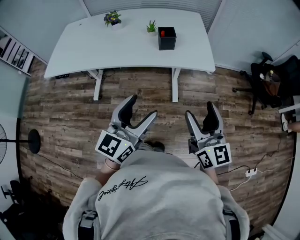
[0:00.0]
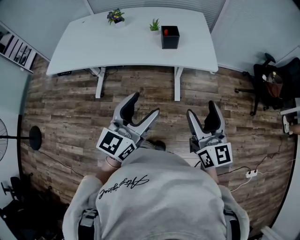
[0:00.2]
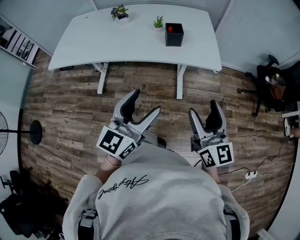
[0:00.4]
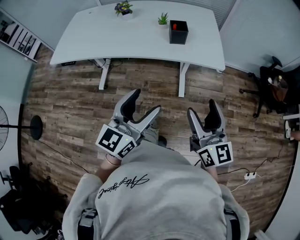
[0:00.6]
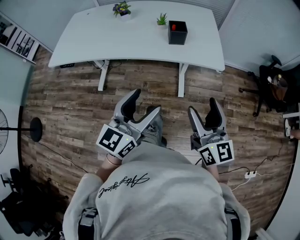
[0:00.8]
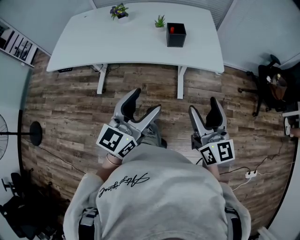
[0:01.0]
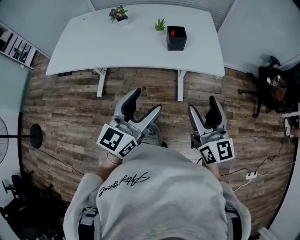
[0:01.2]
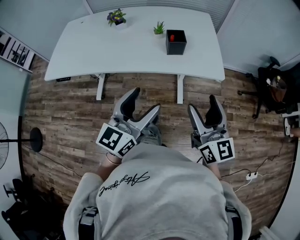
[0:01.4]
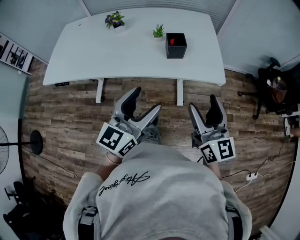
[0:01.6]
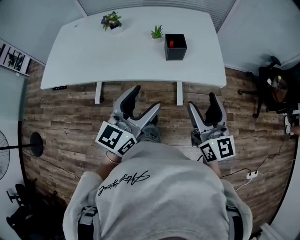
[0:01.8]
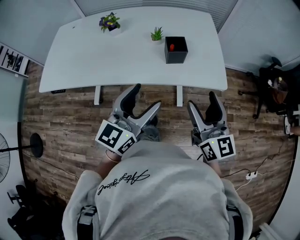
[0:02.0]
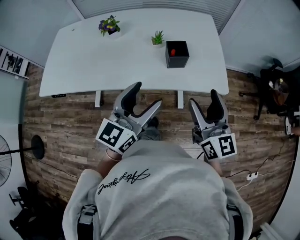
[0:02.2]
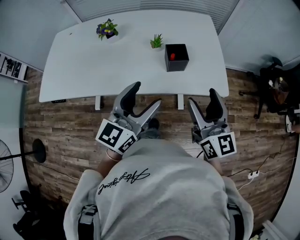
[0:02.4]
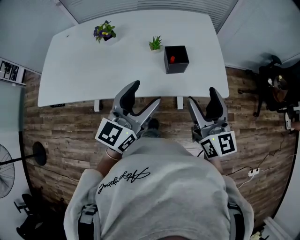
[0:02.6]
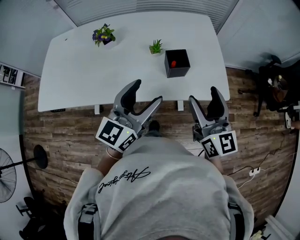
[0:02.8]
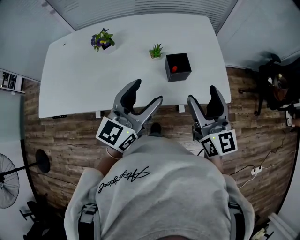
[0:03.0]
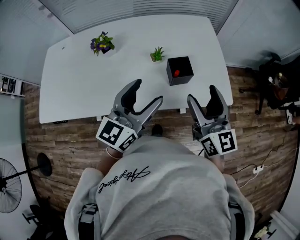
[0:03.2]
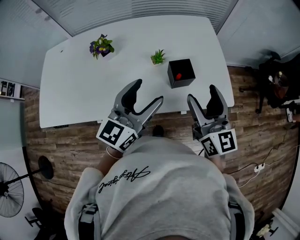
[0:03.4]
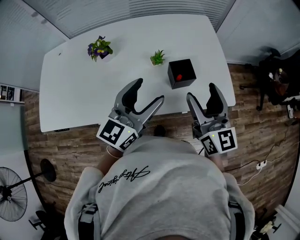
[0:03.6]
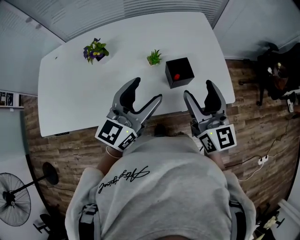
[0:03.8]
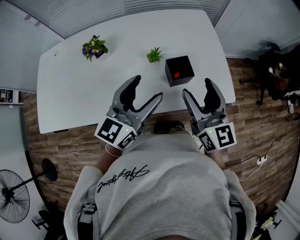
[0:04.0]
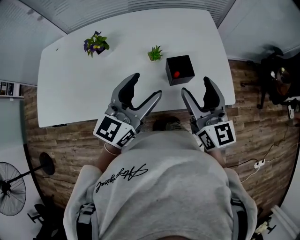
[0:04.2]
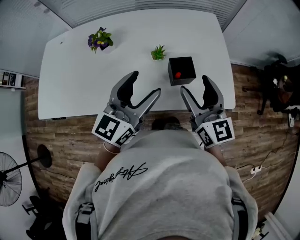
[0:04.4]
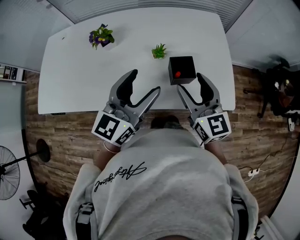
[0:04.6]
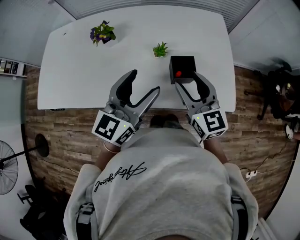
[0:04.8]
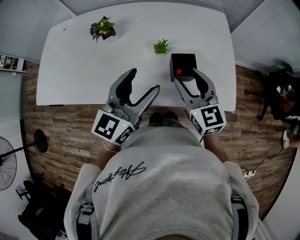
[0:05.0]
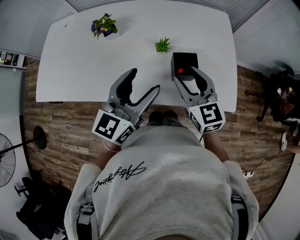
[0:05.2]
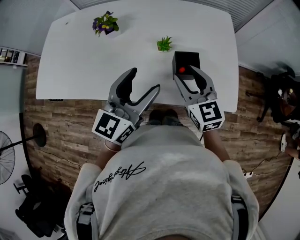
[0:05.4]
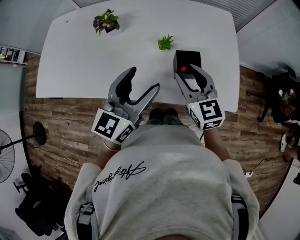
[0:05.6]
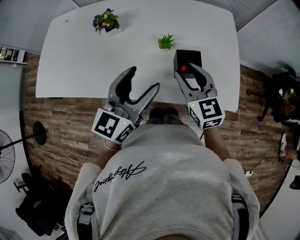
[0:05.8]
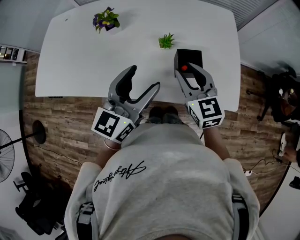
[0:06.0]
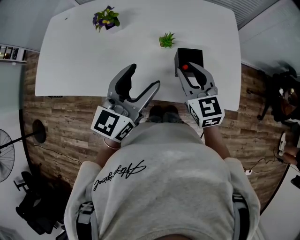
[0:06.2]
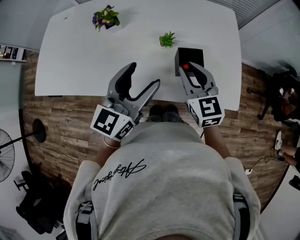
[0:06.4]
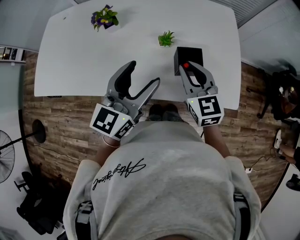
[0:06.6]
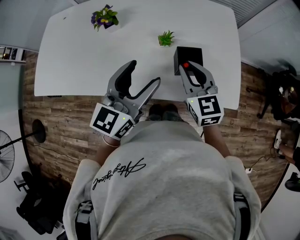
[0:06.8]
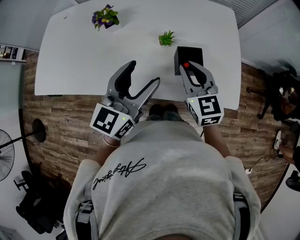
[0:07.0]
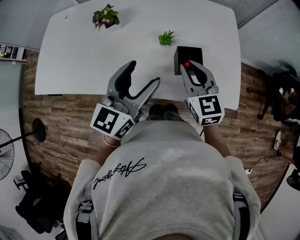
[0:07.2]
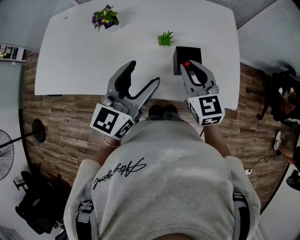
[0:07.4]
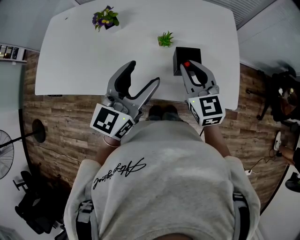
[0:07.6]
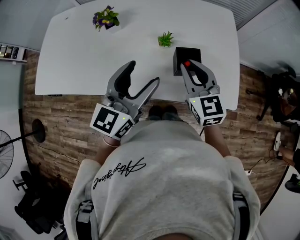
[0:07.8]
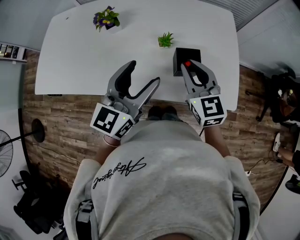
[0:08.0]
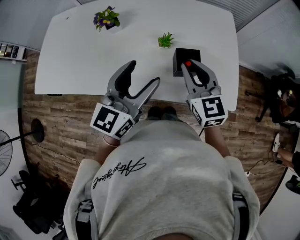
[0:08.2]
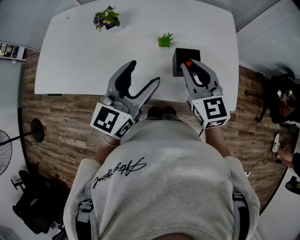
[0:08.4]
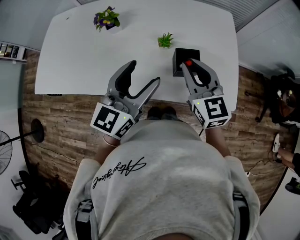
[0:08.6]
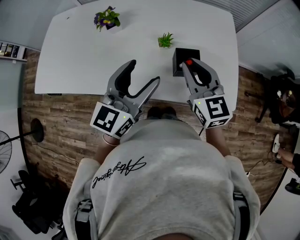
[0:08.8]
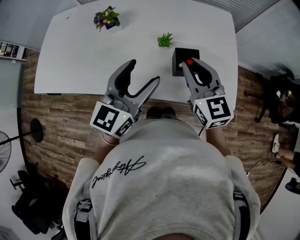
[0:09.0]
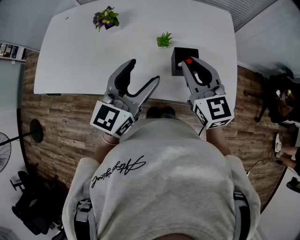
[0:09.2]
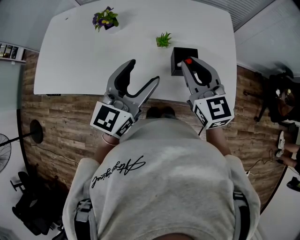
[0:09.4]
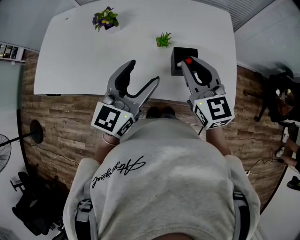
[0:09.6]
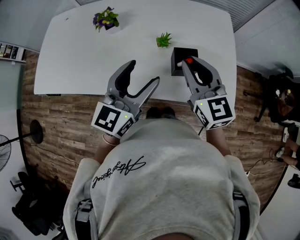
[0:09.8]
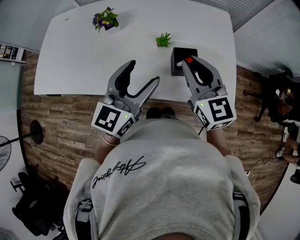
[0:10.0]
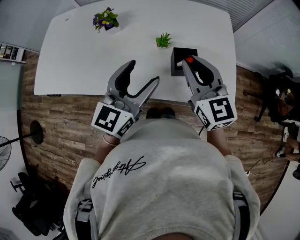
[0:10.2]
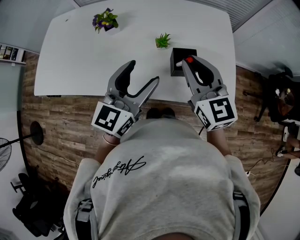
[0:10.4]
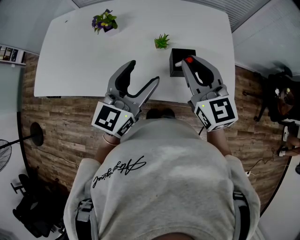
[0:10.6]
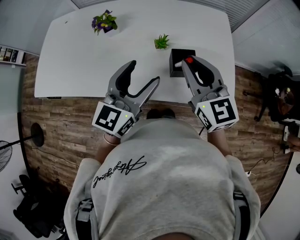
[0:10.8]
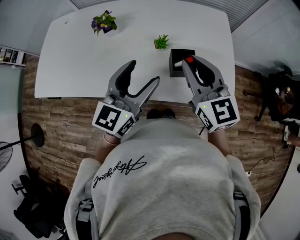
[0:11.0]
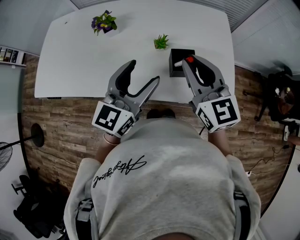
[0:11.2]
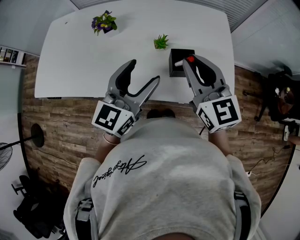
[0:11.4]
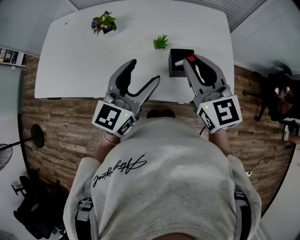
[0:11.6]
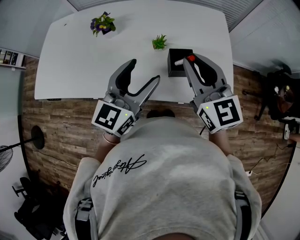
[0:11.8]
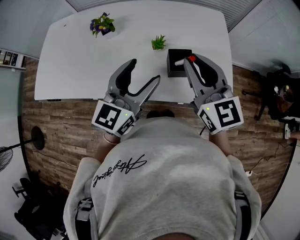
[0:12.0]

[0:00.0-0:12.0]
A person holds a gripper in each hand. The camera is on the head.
0.0 to 1.6 s: The two grippers go some 10 cm forward.
1.6 to 3.0 s: The two grippers go about 15 cm forward.
3.0 to 4.4 s: Both grippers move forward, roughly 5 cm.
4.4 to 6.0 s: The right gripper is displaced downward by roughly 5 cm, swivels some 20 degrees, and closes.
6.0 to 7.6 s: Both grippers stay put.
7.6 to 9.0 s: The grippers stay close to where they were, moving slightly.
9.0 to 10.4 s: The grippers make only small movements.
10.4 to 12.0 s: The grippers make only small movements.

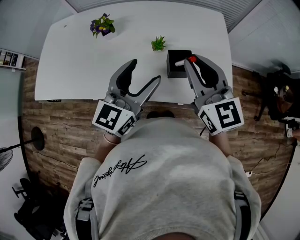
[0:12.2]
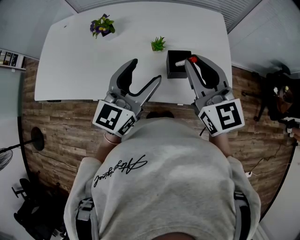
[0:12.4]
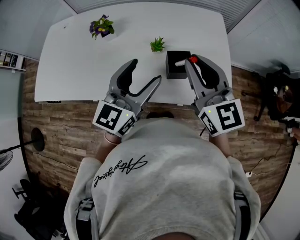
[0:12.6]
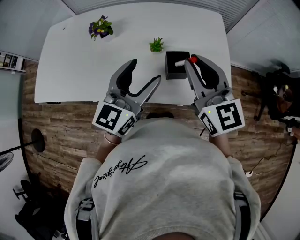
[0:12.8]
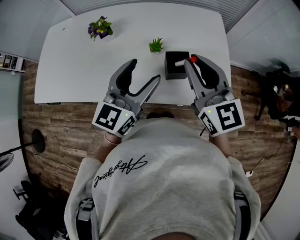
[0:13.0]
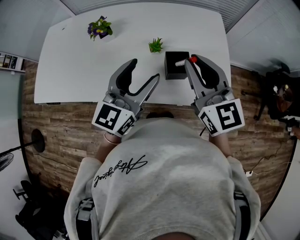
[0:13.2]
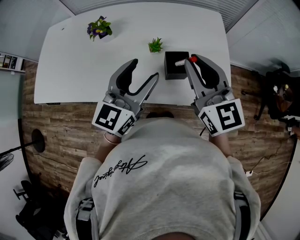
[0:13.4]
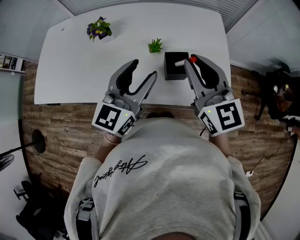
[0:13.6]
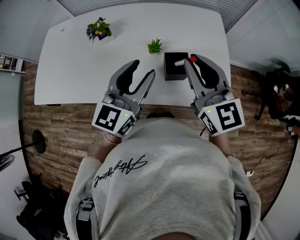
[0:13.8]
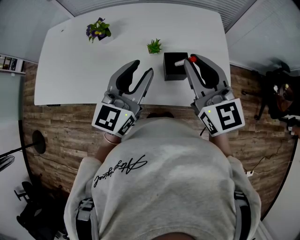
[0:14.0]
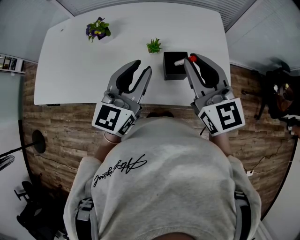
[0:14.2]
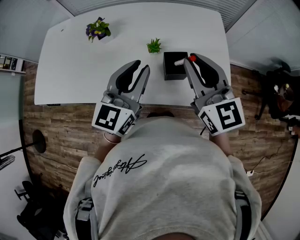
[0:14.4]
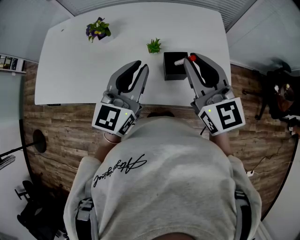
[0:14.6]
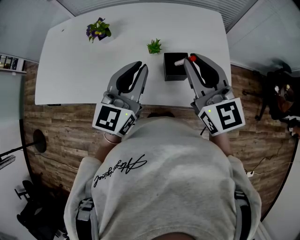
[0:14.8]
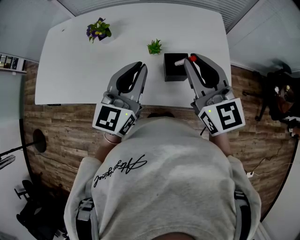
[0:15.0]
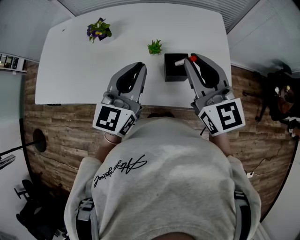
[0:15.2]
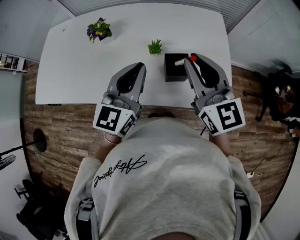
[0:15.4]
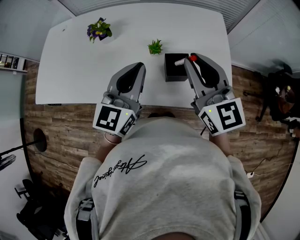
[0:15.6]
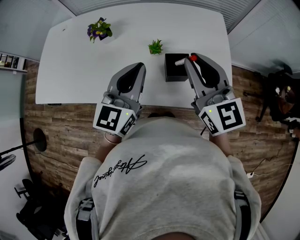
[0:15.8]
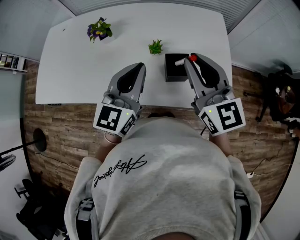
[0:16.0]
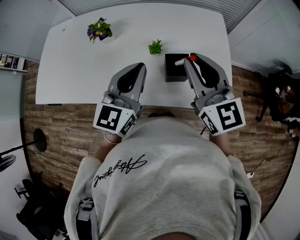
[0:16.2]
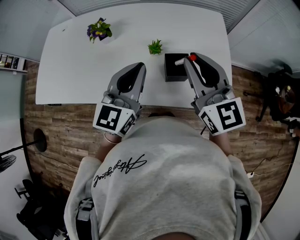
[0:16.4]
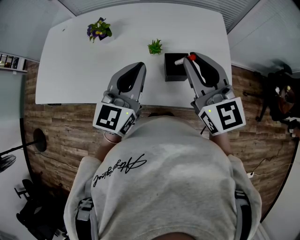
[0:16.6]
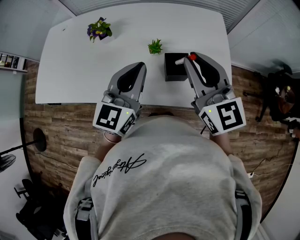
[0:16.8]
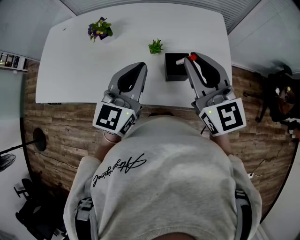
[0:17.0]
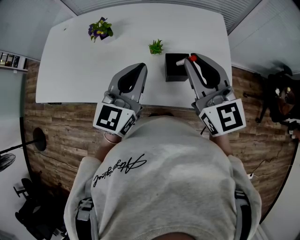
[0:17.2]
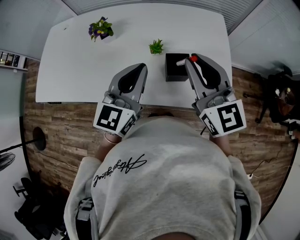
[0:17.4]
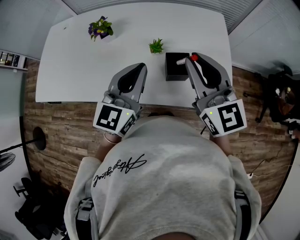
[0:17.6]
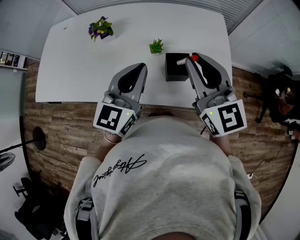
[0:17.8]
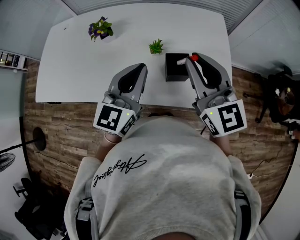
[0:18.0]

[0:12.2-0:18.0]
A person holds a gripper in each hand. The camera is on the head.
12.2 to 13.6 s: The grippers move only a little.
13.6 to 15.0 s: The left gripper closes up.
15.0 to 18.0 s: Both grippers stay about where they are.

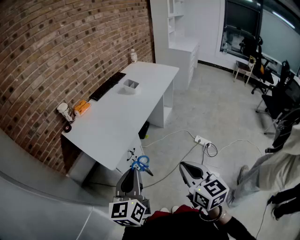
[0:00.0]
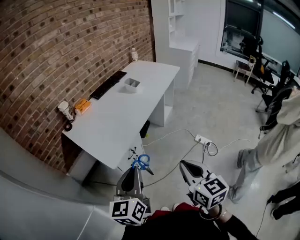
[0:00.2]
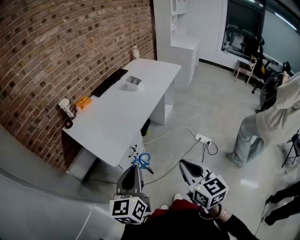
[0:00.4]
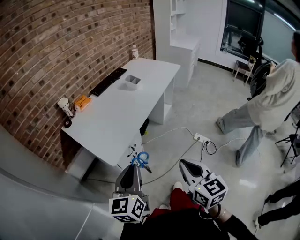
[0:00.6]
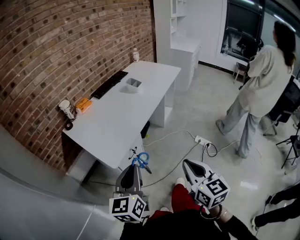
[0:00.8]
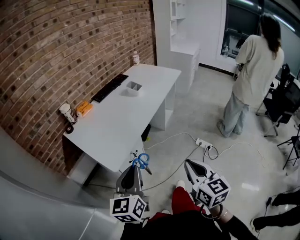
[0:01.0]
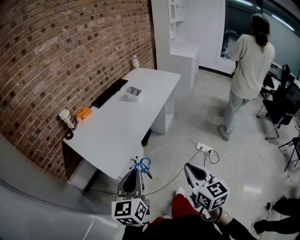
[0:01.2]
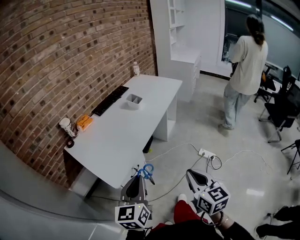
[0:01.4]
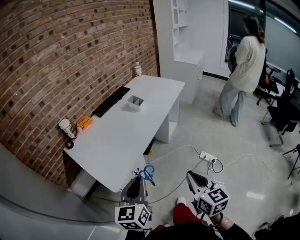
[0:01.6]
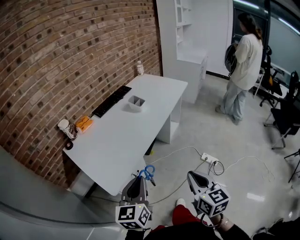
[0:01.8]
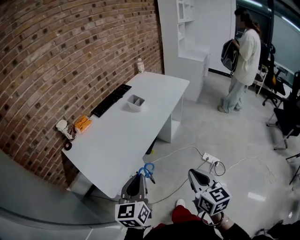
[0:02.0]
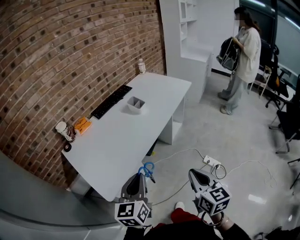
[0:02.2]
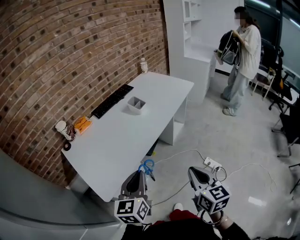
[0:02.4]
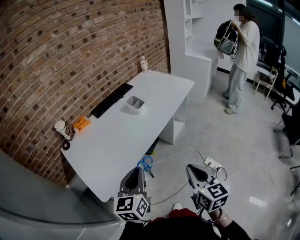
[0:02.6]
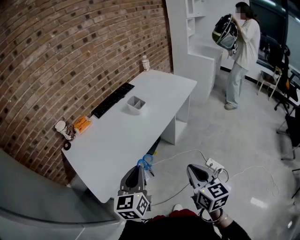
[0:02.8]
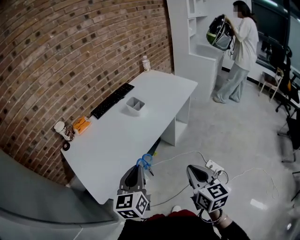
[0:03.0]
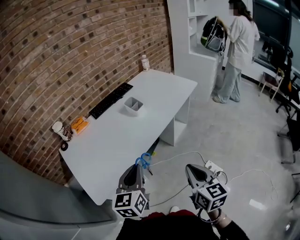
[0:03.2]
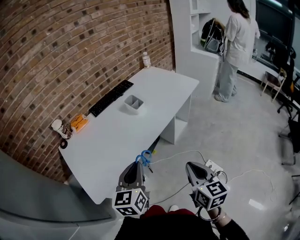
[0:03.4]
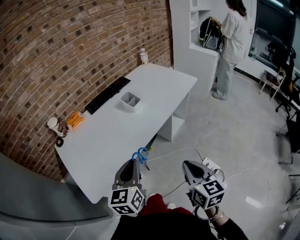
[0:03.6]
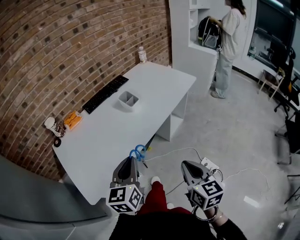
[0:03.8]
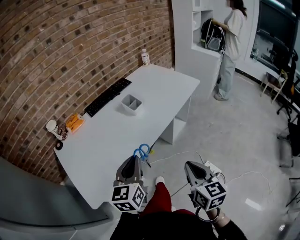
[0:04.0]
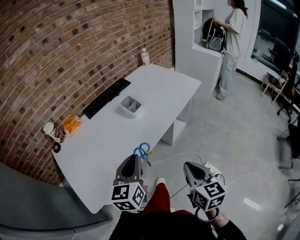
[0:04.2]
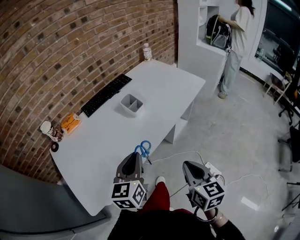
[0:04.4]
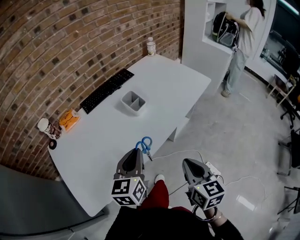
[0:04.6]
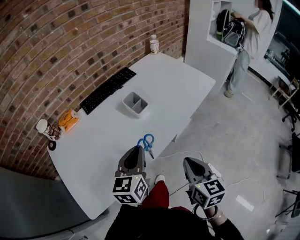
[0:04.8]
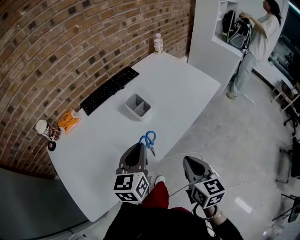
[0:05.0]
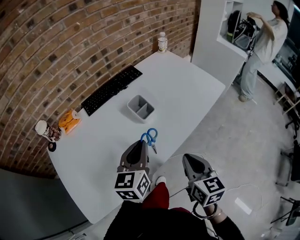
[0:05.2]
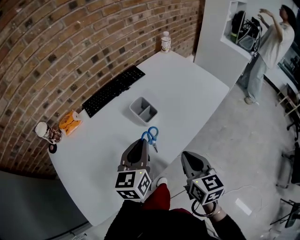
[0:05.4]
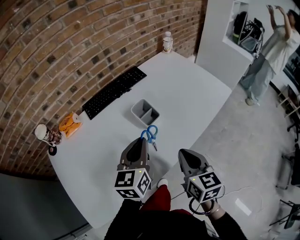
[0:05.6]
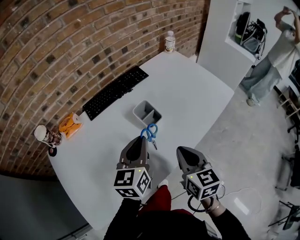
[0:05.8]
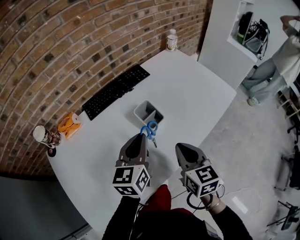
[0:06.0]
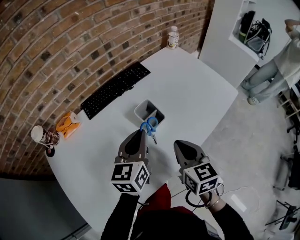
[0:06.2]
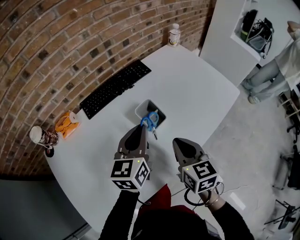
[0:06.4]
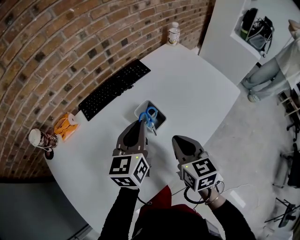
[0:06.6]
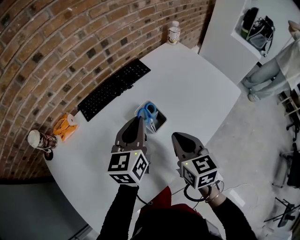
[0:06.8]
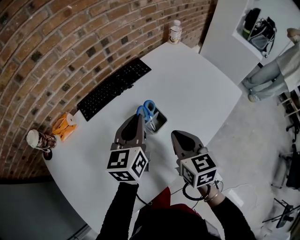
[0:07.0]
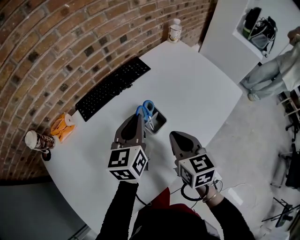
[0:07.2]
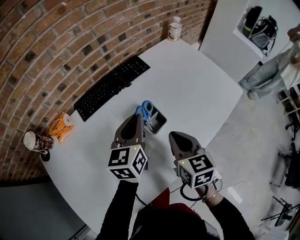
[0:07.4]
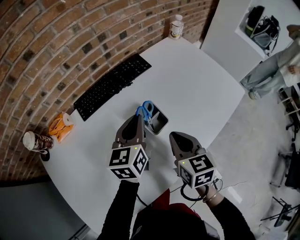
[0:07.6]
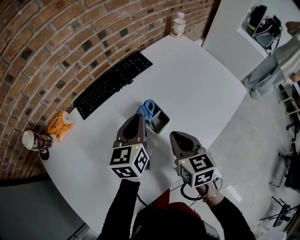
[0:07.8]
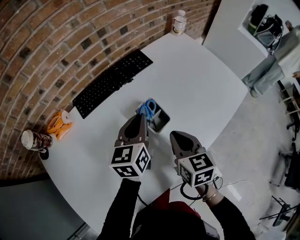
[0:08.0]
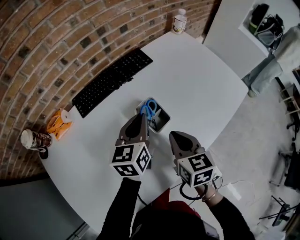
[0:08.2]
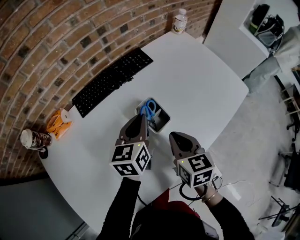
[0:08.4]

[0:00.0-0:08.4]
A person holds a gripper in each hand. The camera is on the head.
0.0 to 1.4 s: The grippers both shift forward by about 5 cm.
1.4 to 2.8 s: The two grippers go approximately 20 cm forward and to the right.
2.8 to 4.2 s: The grippers both shift forward by some 10 cm.
4.2 to 5.6 s: Both grippers move forward, about 25 cm.
5.6 to 7.0 s: Both grippers travel together forward, some 15 cm.
7.0 to 8.4 s: Both grippers move downward, about 5 cm.
